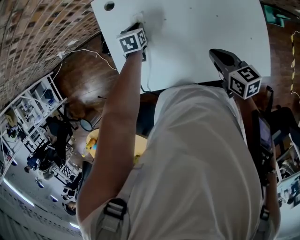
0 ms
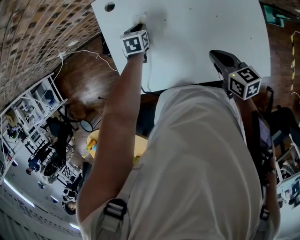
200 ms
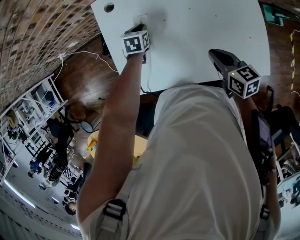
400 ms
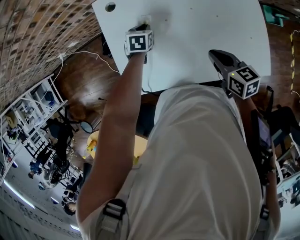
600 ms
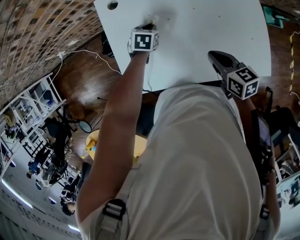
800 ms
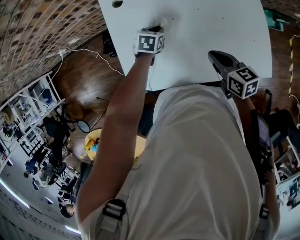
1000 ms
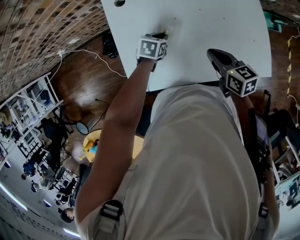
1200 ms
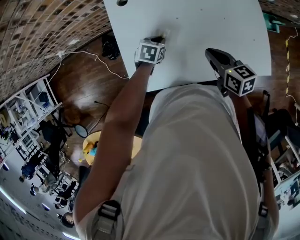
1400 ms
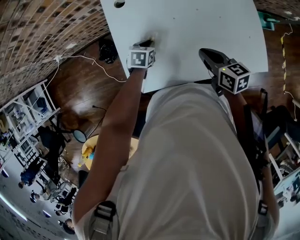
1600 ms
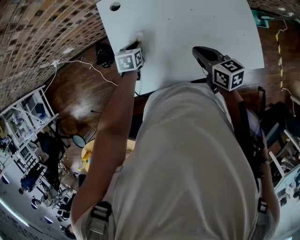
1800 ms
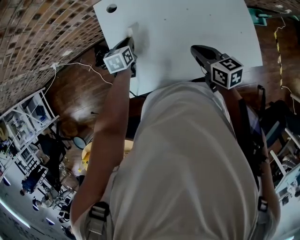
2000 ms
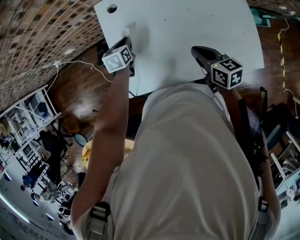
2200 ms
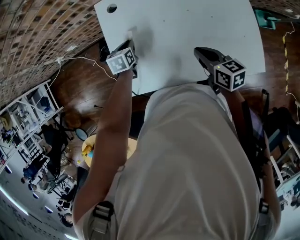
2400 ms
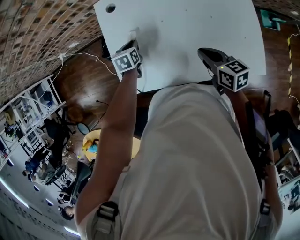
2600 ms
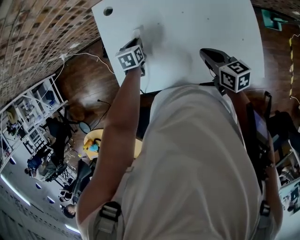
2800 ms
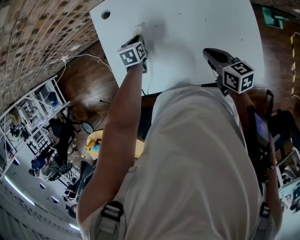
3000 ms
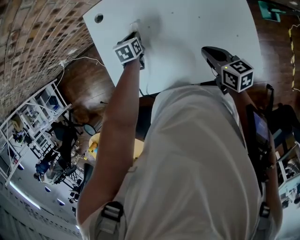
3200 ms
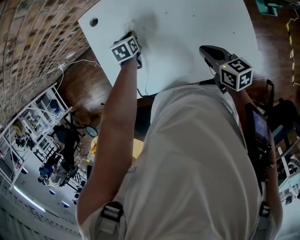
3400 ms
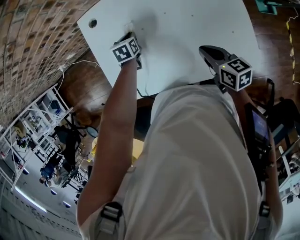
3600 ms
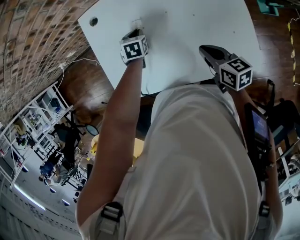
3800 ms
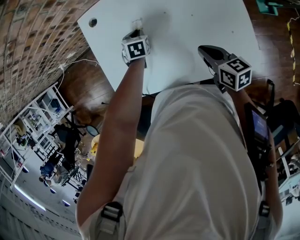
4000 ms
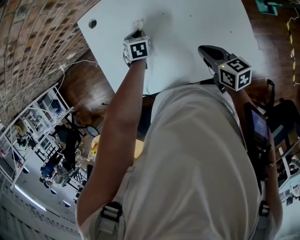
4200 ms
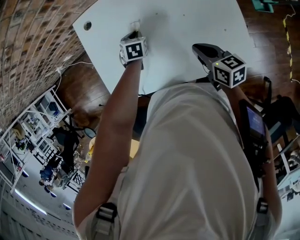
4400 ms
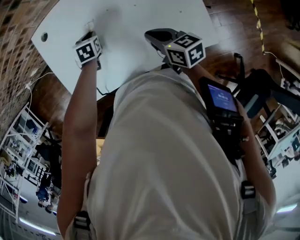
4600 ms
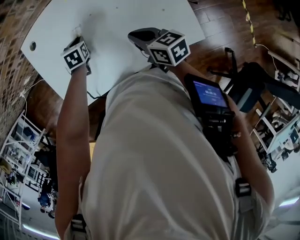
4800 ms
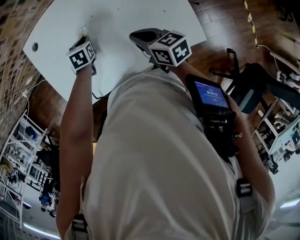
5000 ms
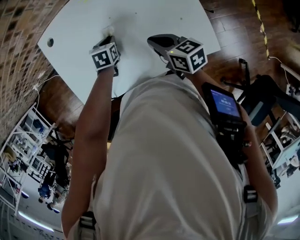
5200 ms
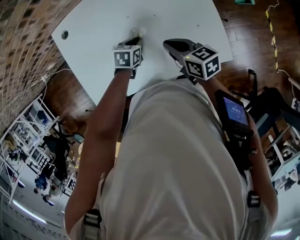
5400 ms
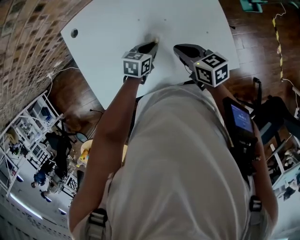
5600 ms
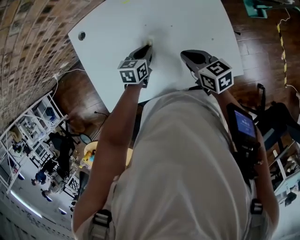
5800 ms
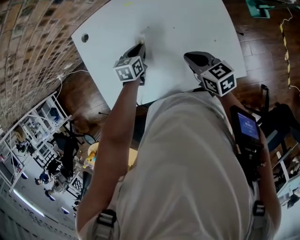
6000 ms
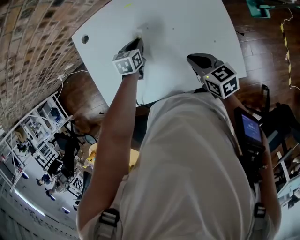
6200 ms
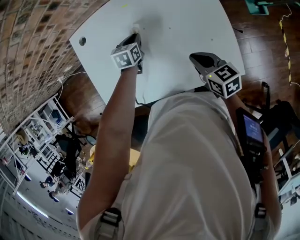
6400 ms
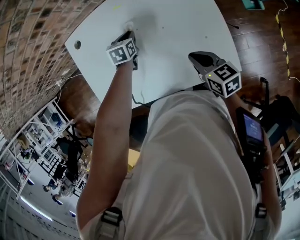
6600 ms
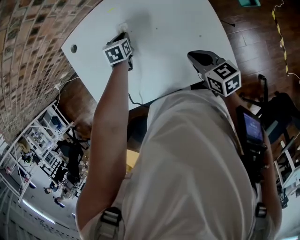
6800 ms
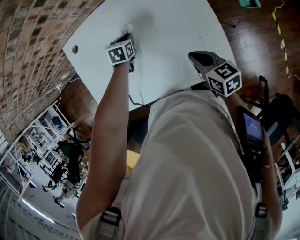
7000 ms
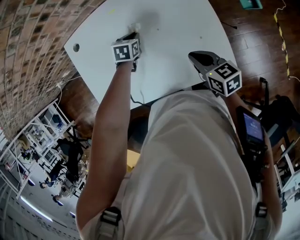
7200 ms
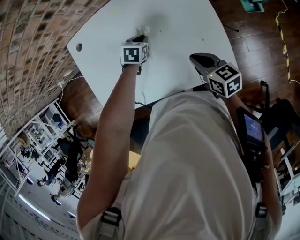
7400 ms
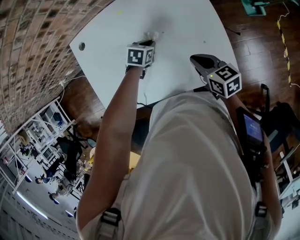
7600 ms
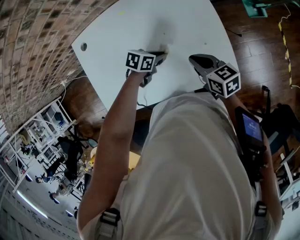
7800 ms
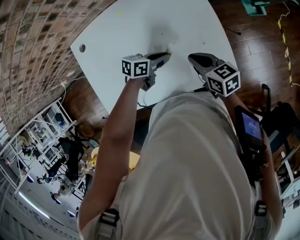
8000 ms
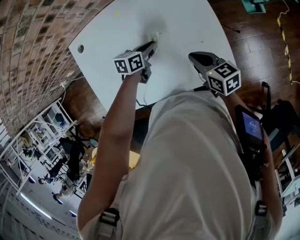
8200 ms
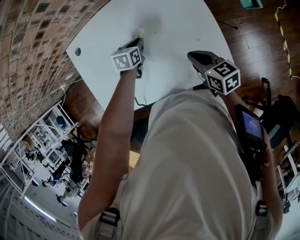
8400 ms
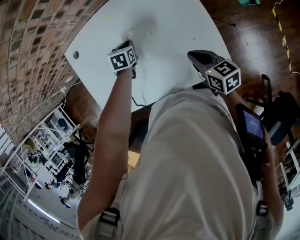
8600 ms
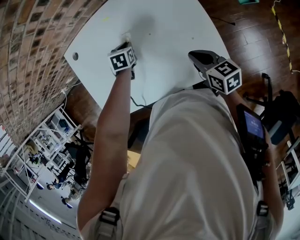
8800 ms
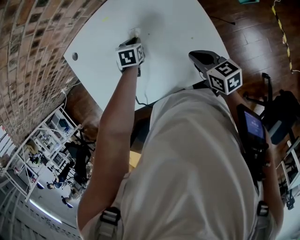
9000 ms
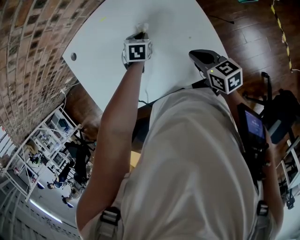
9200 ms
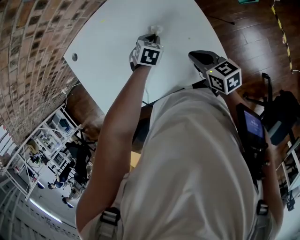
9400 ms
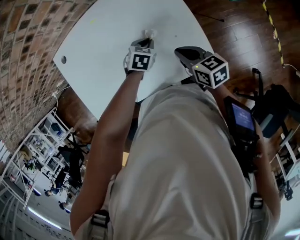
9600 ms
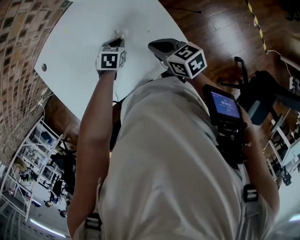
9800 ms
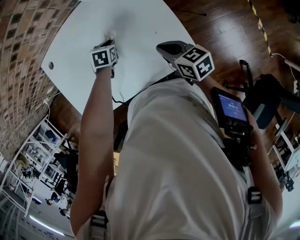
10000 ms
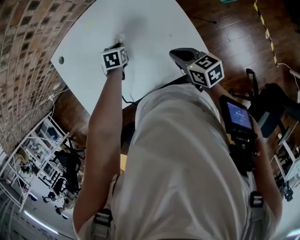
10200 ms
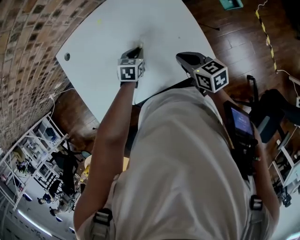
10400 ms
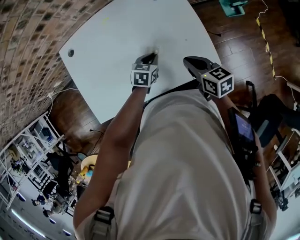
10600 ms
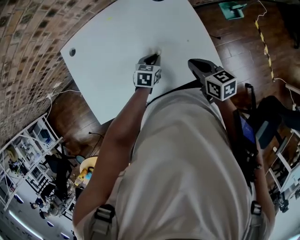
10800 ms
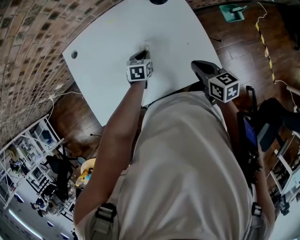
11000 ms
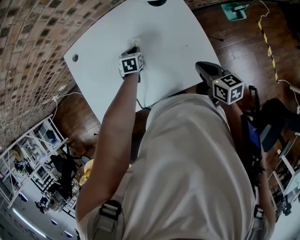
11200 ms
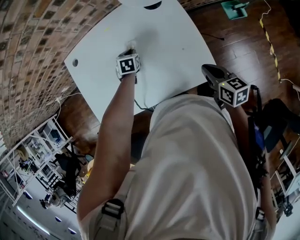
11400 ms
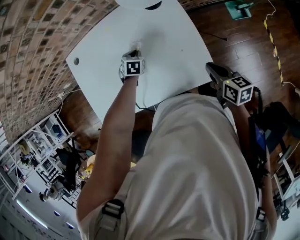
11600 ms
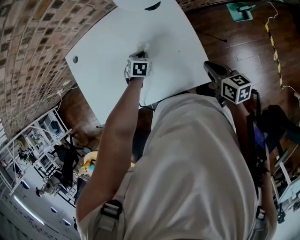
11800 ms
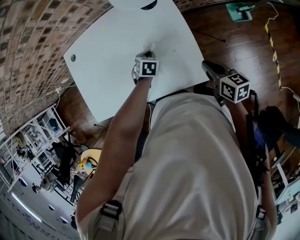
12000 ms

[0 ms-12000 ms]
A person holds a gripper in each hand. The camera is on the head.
0 ms to 1600 ms: The right gripper moves to the left, some 10 cm. The left gripper heads backward, covering approximately 10 cm.
1600 ms to 3000 ms: The left gripper shifts some 10 cm to the right and forward, and swivels about 20 degrees. Meanwhile the right gripper travels to the right by approximately 10 cm.
3000 ms to 4400 ms: The left gripper heads to the right, covering about 5 cm, and changes its angle by roughly 20 degrees.
4400 ms to 6000 ms: The left gripper turns by some 30 degrees.
6000 ms to 7600 ms: The two grippers go roughly 10 cm to the right. The left gripper swivels roughly 20 degrees.
9000 ms to 10400 ms: The left gripper travels backward by approximately 10 cm, and reaches some 10 cm to the right, then returns.
10400 ms to 12000 ms: The right gripper goes about 15 cm to the right. Meanwhile the left gripper swings forward and backward, approximately 15 cm each way, with 2 reversals.

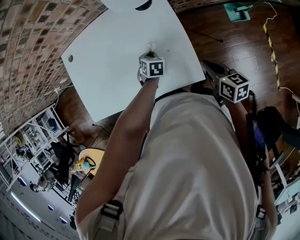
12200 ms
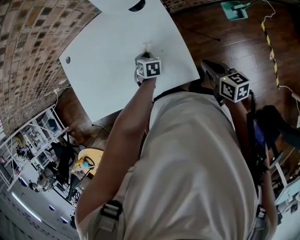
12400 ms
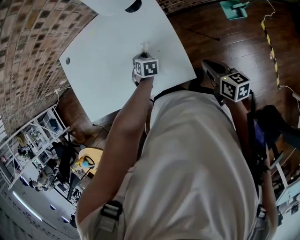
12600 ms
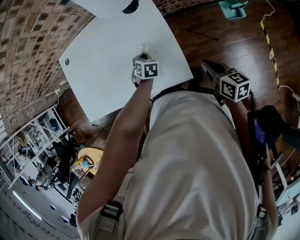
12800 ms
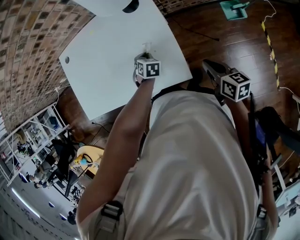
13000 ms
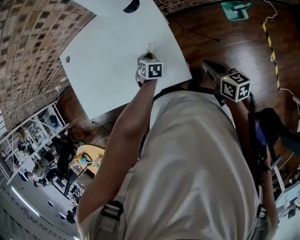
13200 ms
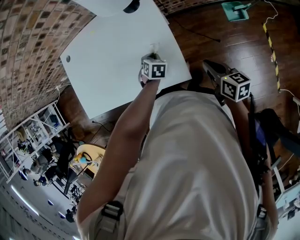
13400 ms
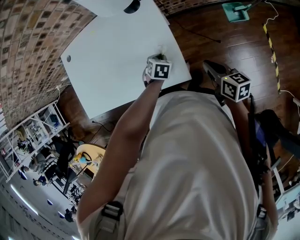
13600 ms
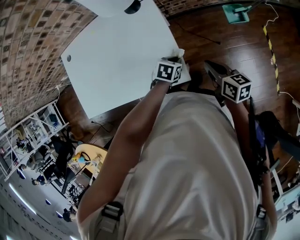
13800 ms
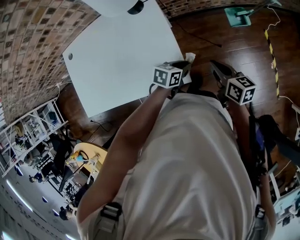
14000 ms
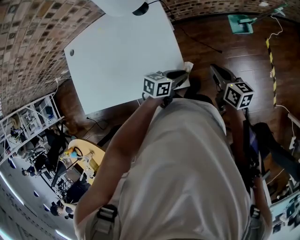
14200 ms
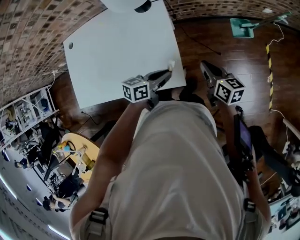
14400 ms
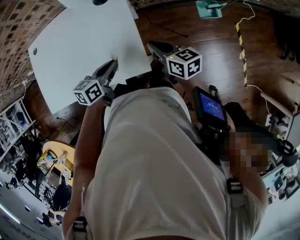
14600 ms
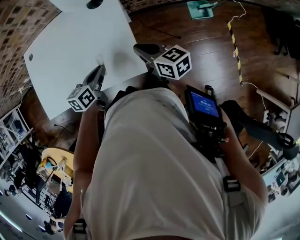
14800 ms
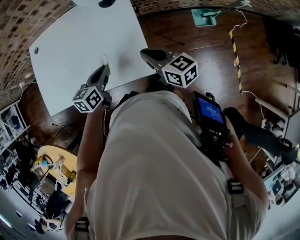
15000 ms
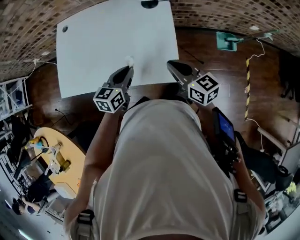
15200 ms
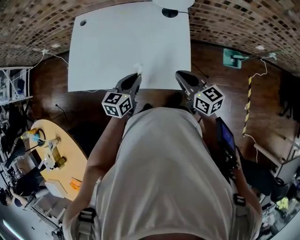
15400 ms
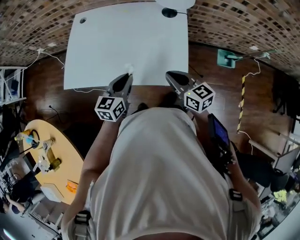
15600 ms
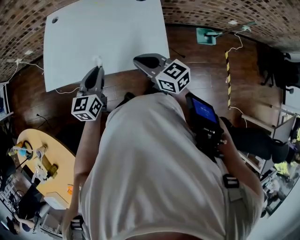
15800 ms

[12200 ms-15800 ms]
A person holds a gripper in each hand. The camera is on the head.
12200 ms to 14000 ms: The right gripper shifts by about 10 cm. The left gripper changes place by about 25 cm, and swivels roughly 40 degrees.
14000 ms to 15800 ms: The right gripper moves some 35 cm, and swivels some 40 degrees; the left gripper ends up about 40 cm from where it was, and changes its angle by roughly 50 degrees.

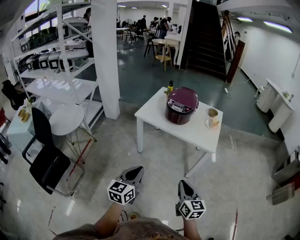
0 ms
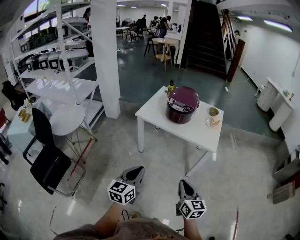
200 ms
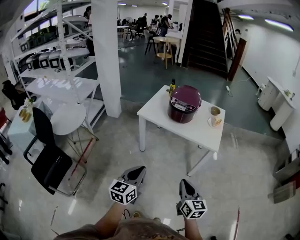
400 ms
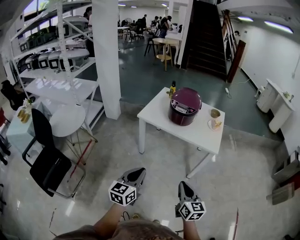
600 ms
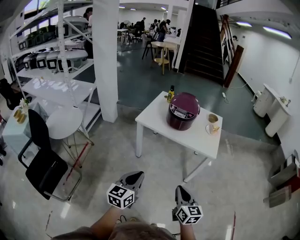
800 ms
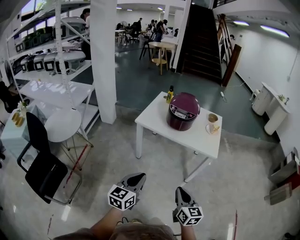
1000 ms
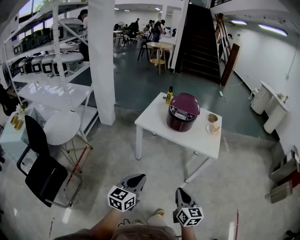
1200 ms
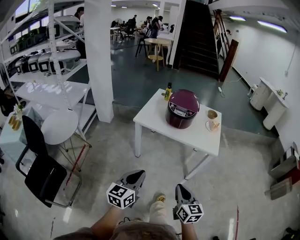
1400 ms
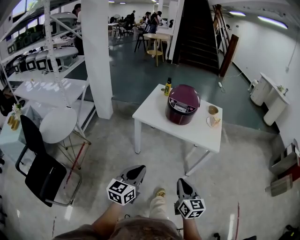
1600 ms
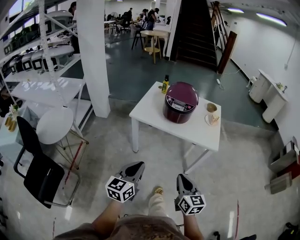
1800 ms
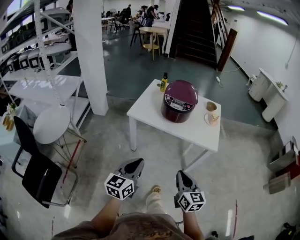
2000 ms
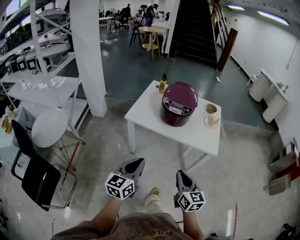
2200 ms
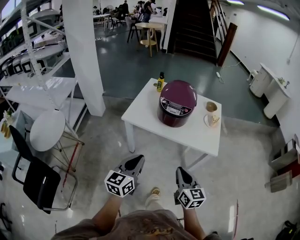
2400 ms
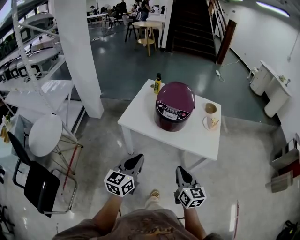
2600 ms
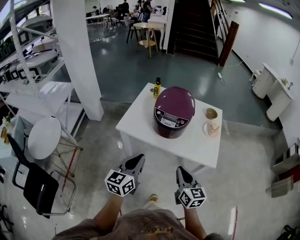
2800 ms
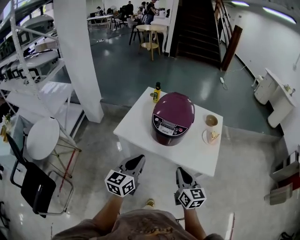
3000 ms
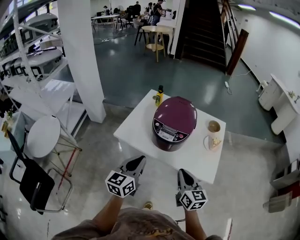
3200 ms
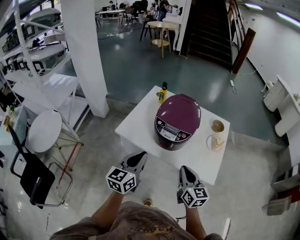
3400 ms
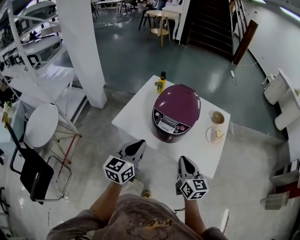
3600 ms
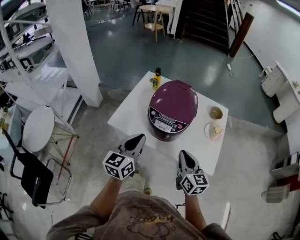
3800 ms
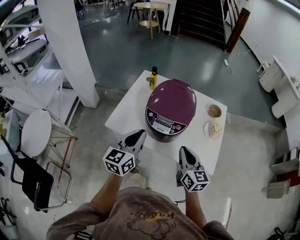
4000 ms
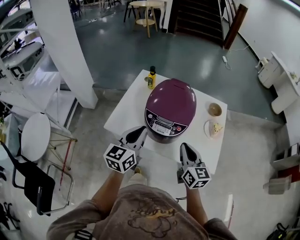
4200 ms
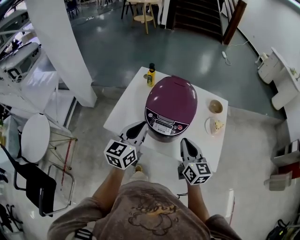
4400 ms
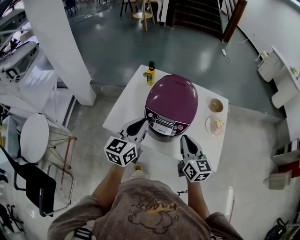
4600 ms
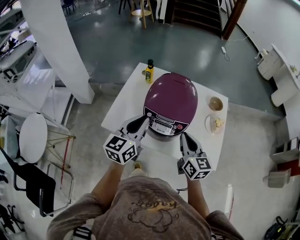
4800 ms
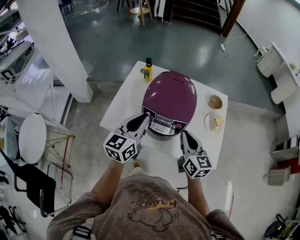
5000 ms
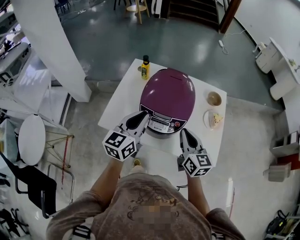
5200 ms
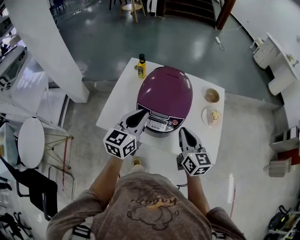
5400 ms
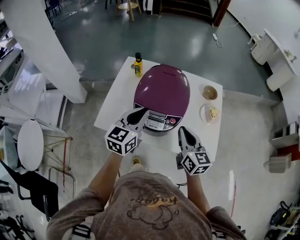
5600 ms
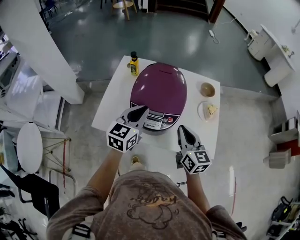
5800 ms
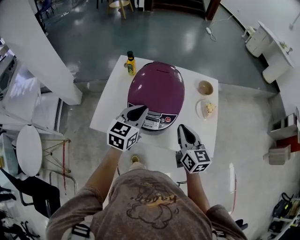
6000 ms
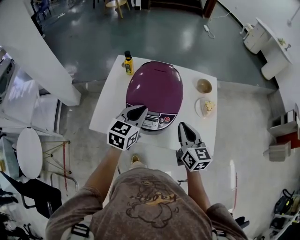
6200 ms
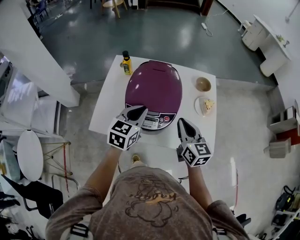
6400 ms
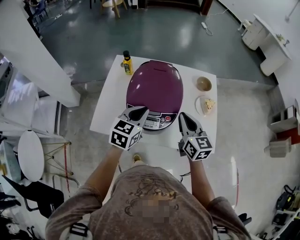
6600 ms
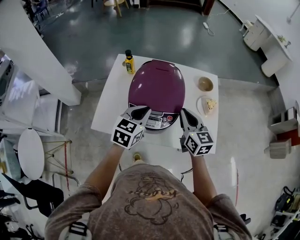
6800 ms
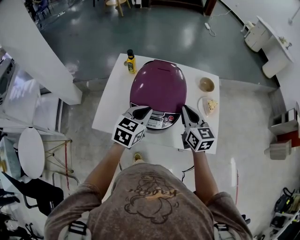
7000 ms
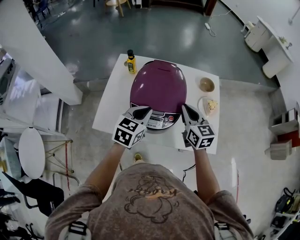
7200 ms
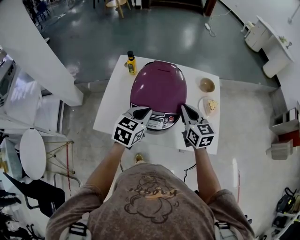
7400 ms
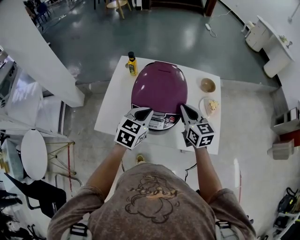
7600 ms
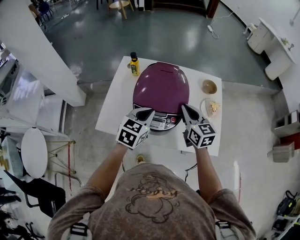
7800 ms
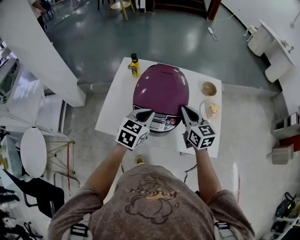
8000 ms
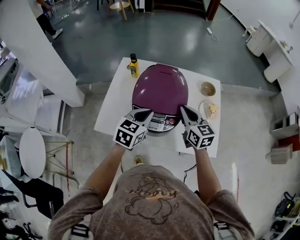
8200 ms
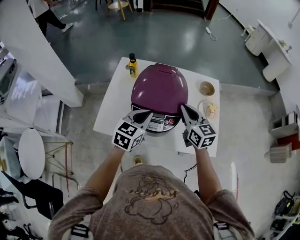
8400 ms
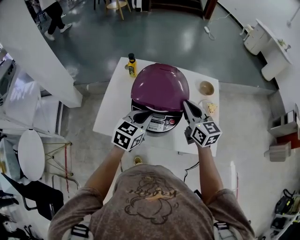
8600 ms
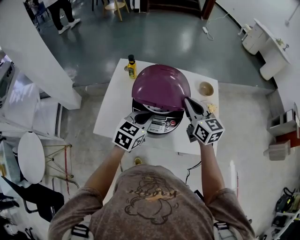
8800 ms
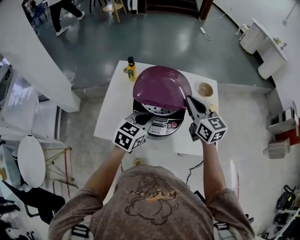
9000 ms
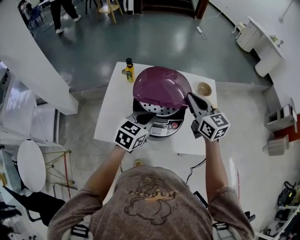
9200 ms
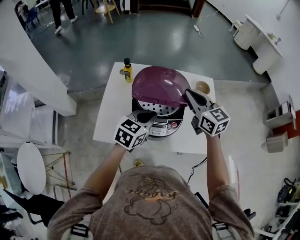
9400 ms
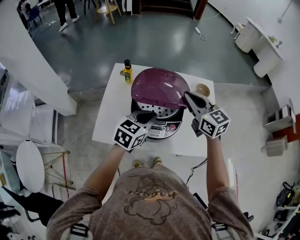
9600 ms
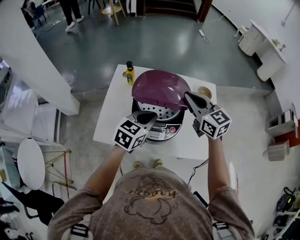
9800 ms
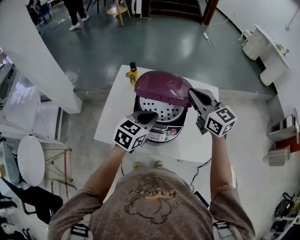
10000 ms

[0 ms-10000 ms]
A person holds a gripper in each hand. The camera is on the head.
0 ms to 1400 ms: Both grippers travel together to the left, some 5 cm.
1400 ms to 2800 ms: Both grippers move forward, roughly 30 cm.
2800 ms to 4200 ms: Both grippers move forward, some 20 cm.
4200 ms to 5800 ms: The left gripper travels forward and to the right by roughly 10 cm. Meanwhile the right gripper travels forward by about 5 cm.
5800 ms to 7200 ms: The right gripper travels forward by approximately 10 cm.
7200 ms to 8600 ms: The grippers move only a little.
8600 ms to 10000 ms: The right gripper travels upward by about 10 cm.
